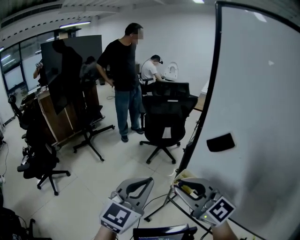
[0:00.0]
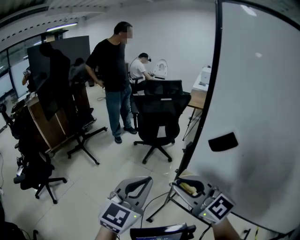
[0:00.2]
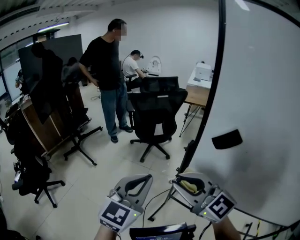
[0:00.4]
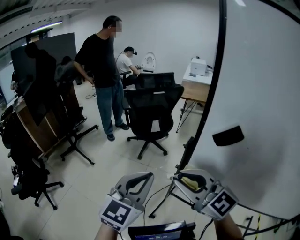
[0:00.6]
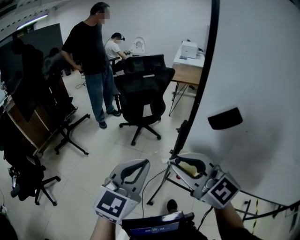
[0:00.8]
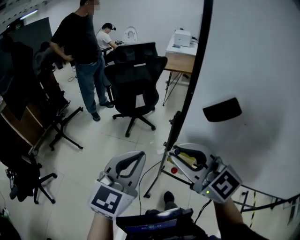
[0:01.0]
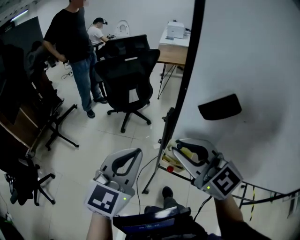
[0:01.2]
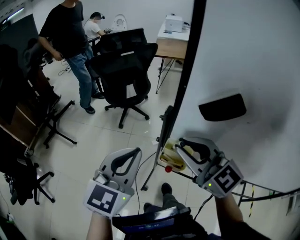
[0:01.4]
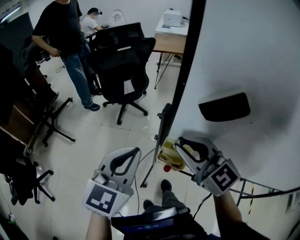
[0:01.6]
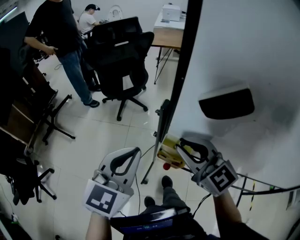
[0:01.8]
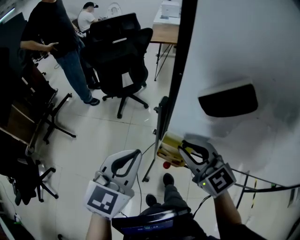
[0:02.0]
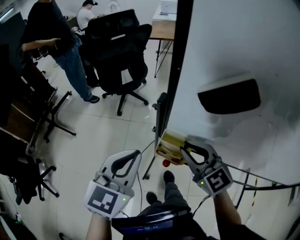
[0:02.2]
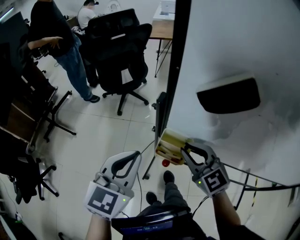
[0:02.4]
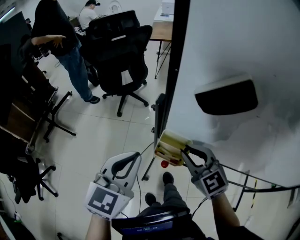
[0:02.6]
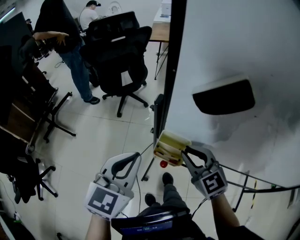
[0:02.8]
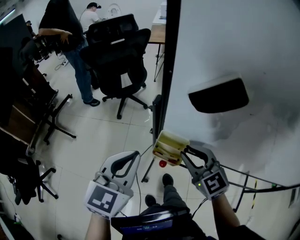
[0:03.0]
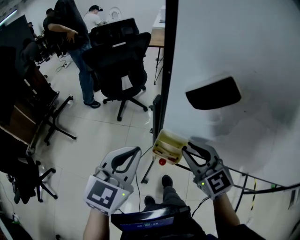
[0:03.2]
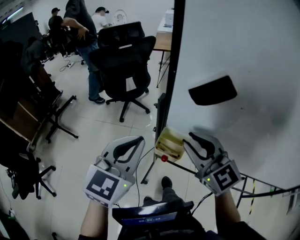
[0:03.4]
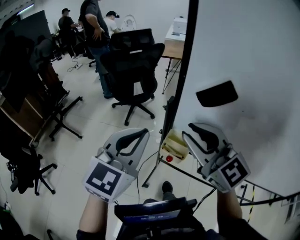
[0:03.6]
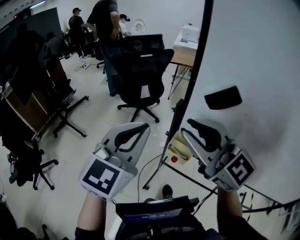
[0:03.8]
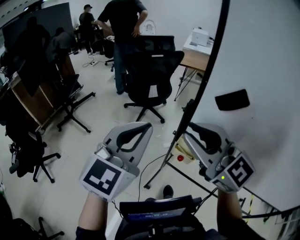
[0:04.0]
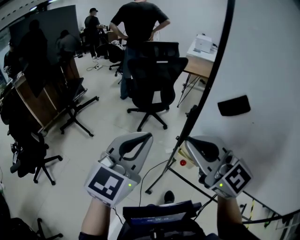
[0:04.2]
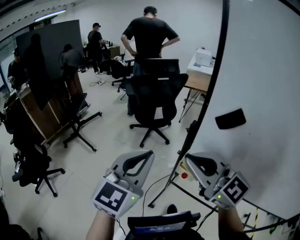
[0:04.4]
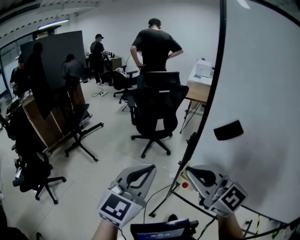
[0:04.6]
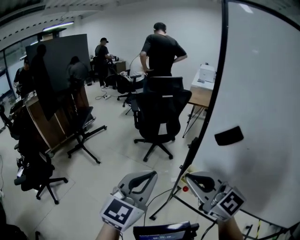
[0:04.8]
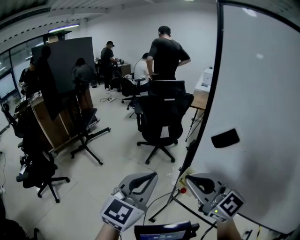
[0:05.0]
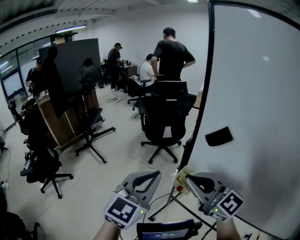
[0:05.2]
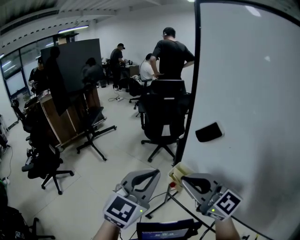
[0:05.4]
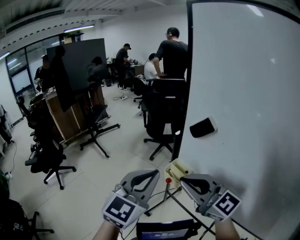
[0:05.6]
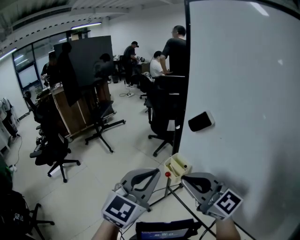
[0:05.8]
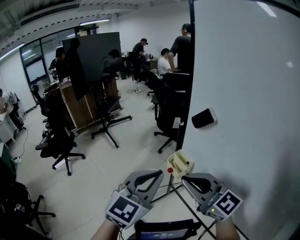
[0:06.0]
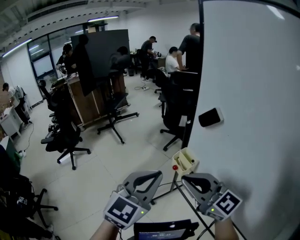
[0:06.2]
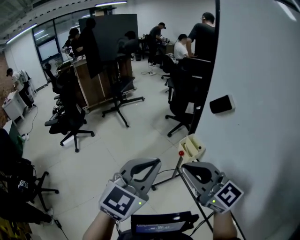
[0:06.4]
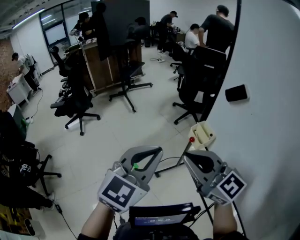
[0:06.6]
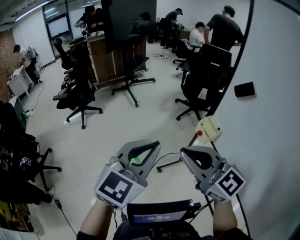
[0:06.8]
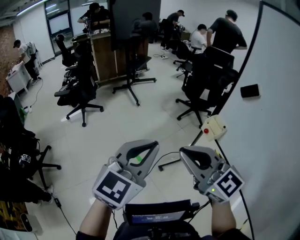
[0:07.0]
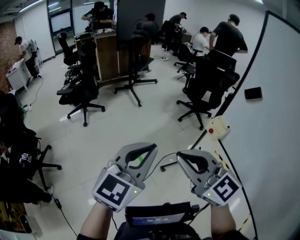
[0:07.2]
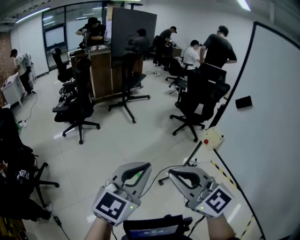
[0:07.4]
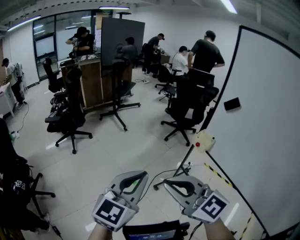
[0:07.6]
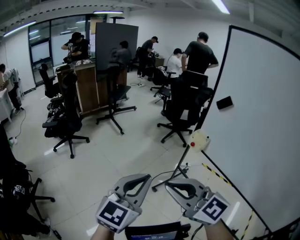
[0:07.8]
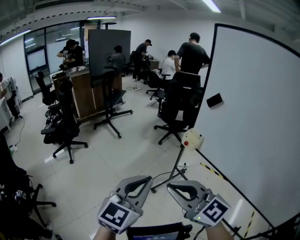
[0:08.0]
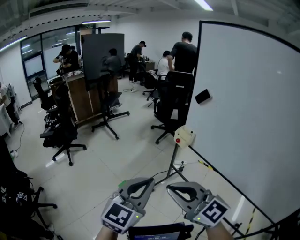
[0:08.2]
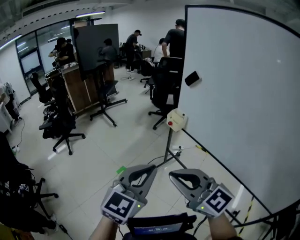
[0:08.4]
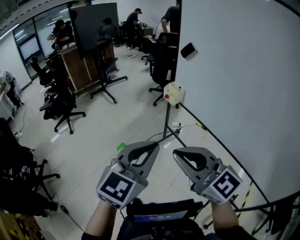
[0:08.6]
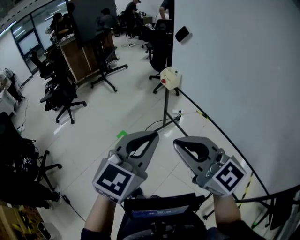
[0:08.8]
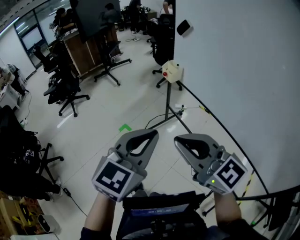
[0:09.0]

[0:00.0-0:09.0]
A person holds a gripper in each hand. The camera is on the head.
0:00.0 to 0:01.6: The left gripper shifts about 15 cm forward and downward; the right gripper travels forward, downward and to the right by approximately 15 cm, and swivels some 30 degrees.
0:01.6 to 0:03.0: The right gripper is displaced downward and to the right by roughly 15 cm, while the left gripper shifts by about 5 cm.
0:03.0 to 0:04.4: The left gripper heads upward, to the left and backward, covering about 15 cm, while the right gripper heads upward and to the left, covering roughly 25 cm, swivels approximately 40 degrees, and closes.
0:04.4 to 0:06.0: The two grippers go approximately 20 cm backward and to the right. The right gripper swivels about 20 degrees.
0:06.0 to 0:07.6: The grippers both shift to the left and backward by approximately 35 cm.
0:07.6 to 0:09.0: Both grippers travel together to the right and backward, about 35 cm.

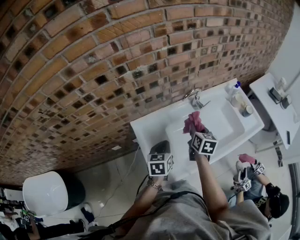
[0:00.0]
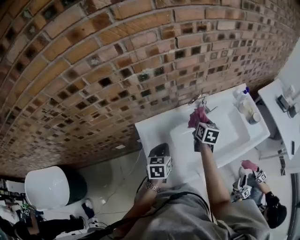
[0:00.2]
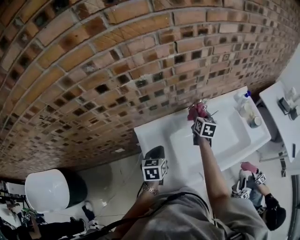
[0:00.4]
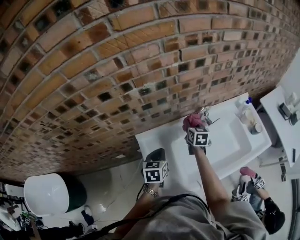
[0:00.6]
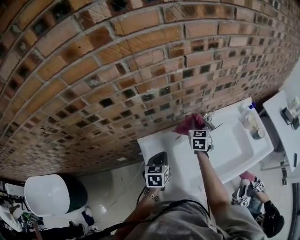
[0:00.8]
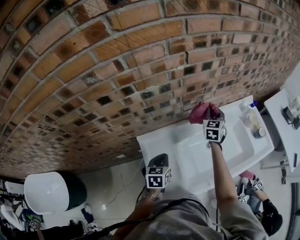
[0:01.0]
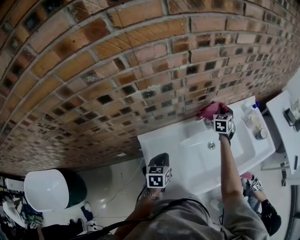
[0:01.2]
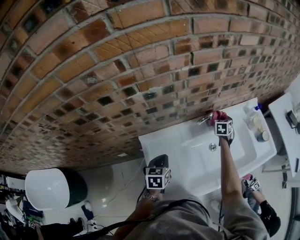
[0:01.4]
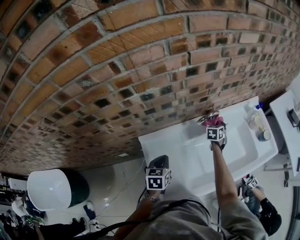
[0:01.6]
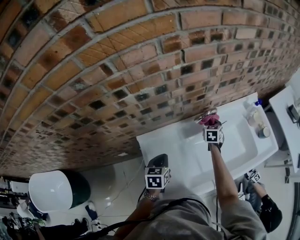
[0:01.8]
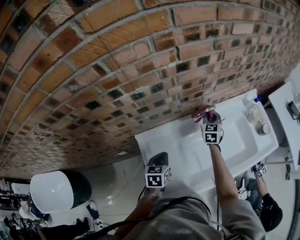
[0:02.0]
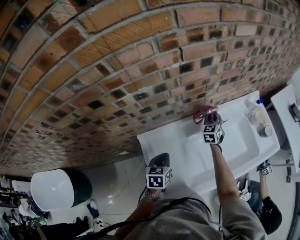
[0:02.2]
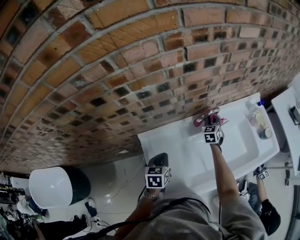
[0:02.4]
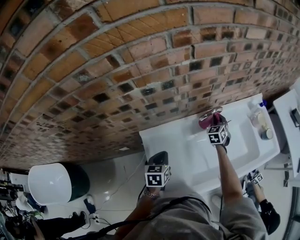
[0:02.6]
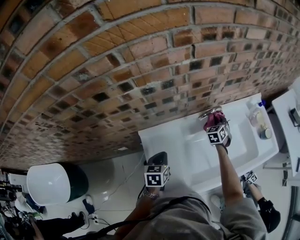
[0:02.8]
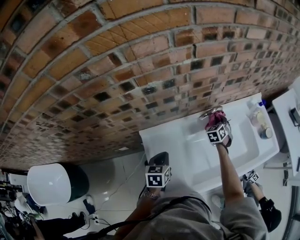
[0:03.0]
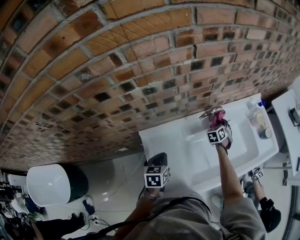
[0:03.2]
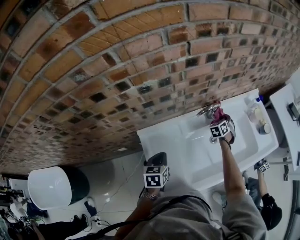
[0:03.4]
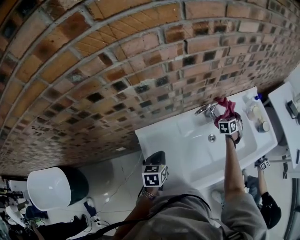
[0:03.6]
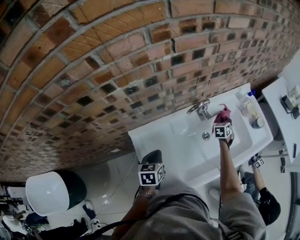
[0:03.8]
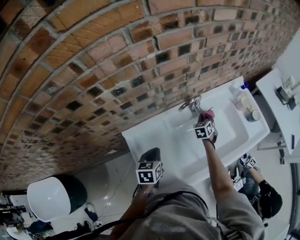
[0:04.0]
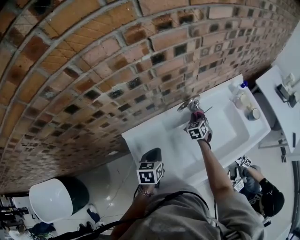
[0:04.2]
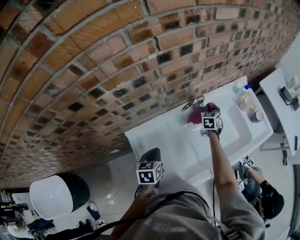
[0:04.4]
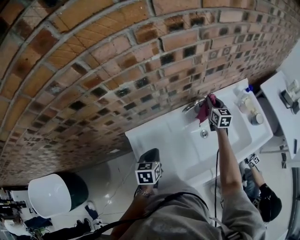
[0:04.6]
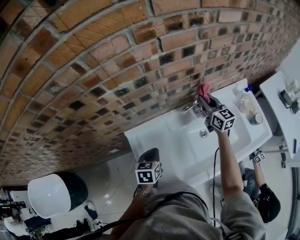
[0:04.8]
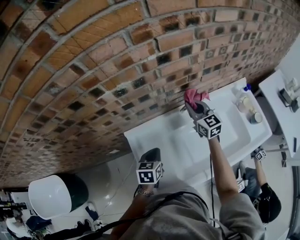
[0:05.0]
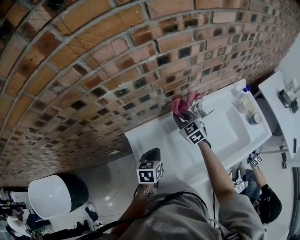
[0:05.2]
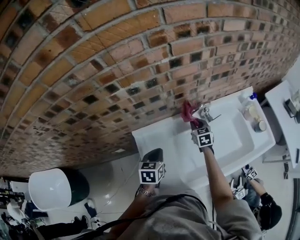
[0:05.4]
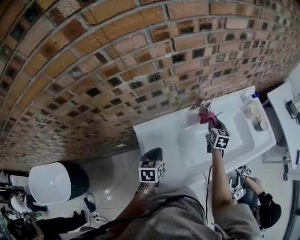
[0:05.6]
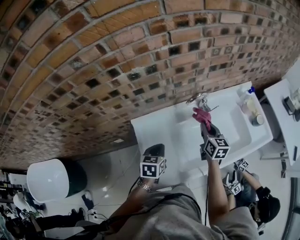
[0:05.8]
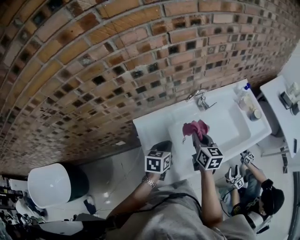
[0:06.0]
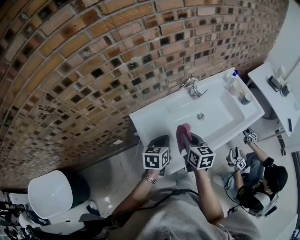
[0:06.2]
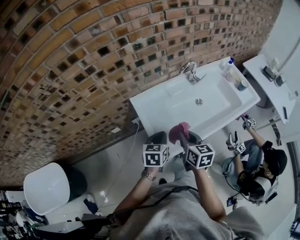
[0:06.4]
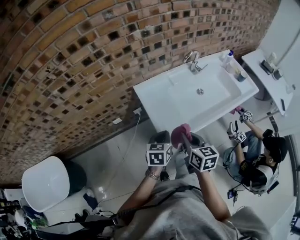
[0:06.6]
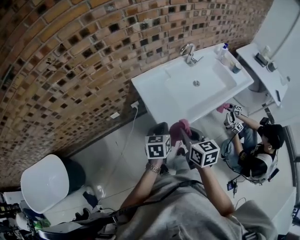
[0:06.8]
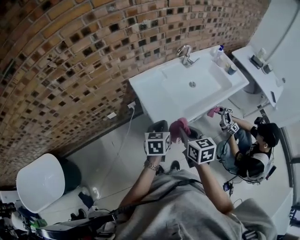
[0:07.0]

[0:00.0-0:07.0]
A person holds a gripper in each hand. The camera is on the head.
0:00.0 to 0:01.4: The right gripper heads forward, to the right and downward, covering approximately 30 cm, and turns by approximately 40 degrees. The left gripper travels forward by approximately 10 cm.
0:01.4 to 0:02.8: The right gripper is displaced to the left by roughly 5 cm, reaches approximately 5 cm upward, then returns, and swivels approximately 20 degrees.
0:02.8 to 0:04.2: The right gripper goes to the right and returns, roughly 15 cm each way. Meanwhile the left gripper ends up approximately 5 cm from where it was.
0:04.2 to 0:05.6: The right gripper moves left and right over about 20 cm, changing direction 2 times, and rotates some 40 degrees.
0:05.6 to 0:07.0: The right gripper goes roughly 60 cm backward and to the left; the left gripper travels backward by about 30 cm.

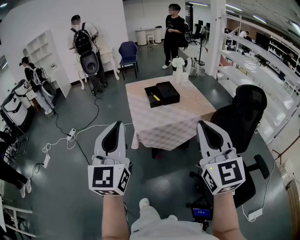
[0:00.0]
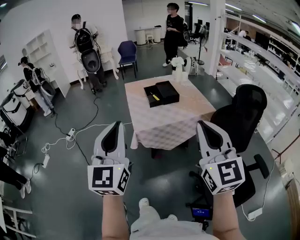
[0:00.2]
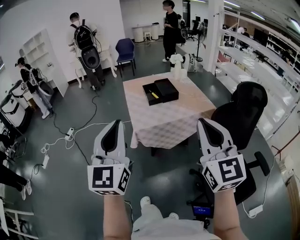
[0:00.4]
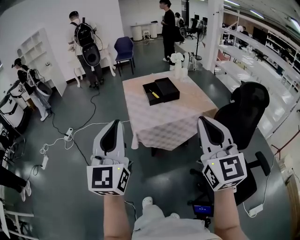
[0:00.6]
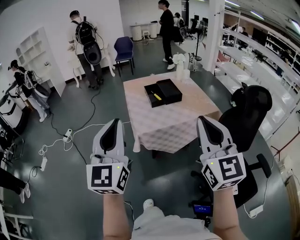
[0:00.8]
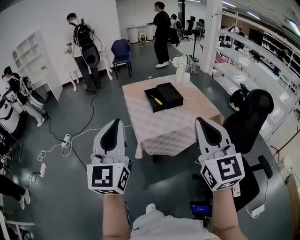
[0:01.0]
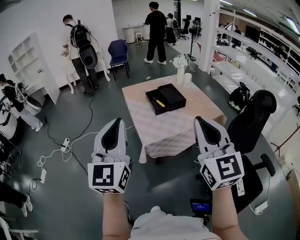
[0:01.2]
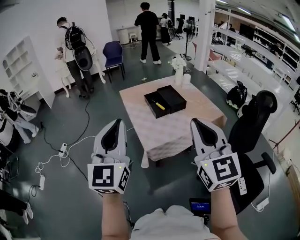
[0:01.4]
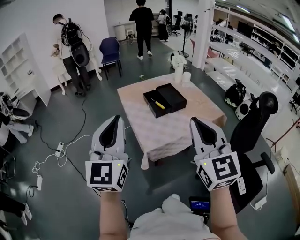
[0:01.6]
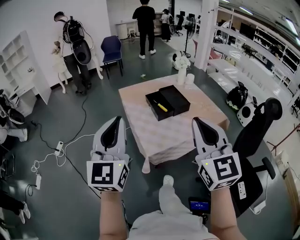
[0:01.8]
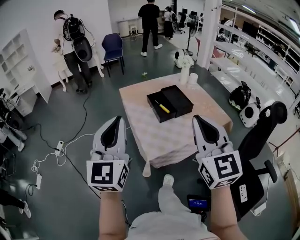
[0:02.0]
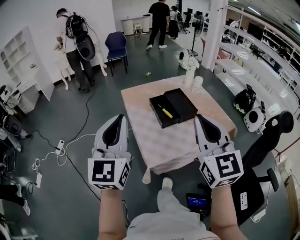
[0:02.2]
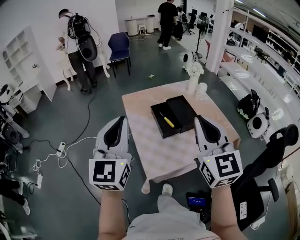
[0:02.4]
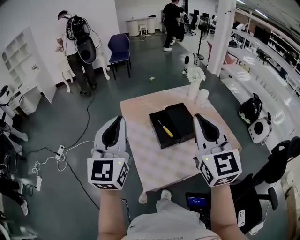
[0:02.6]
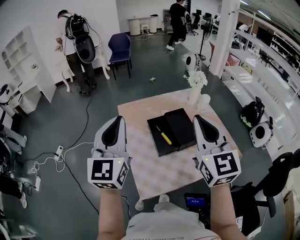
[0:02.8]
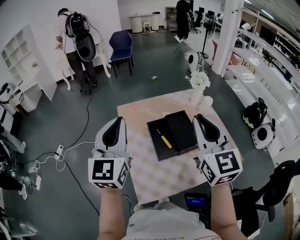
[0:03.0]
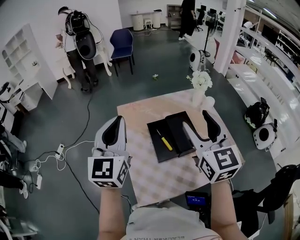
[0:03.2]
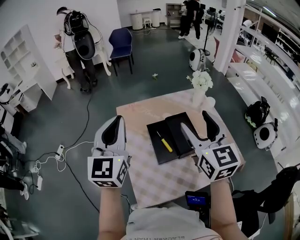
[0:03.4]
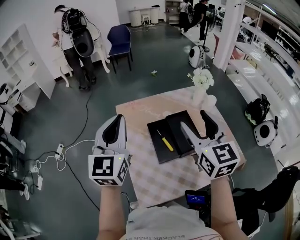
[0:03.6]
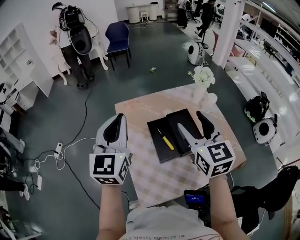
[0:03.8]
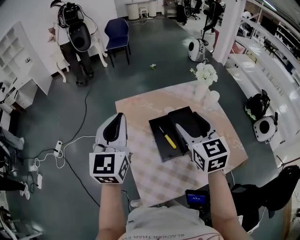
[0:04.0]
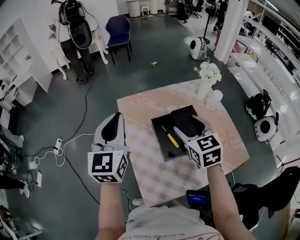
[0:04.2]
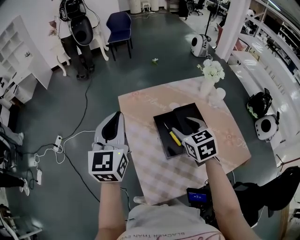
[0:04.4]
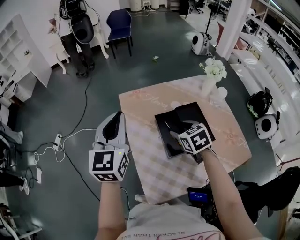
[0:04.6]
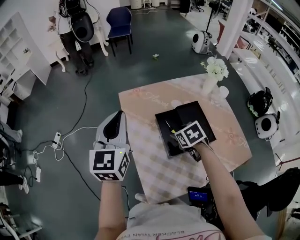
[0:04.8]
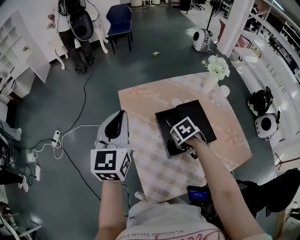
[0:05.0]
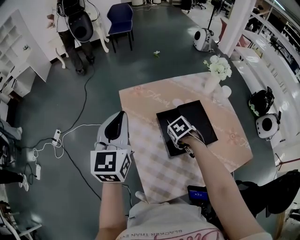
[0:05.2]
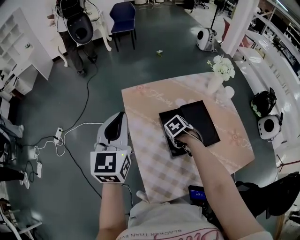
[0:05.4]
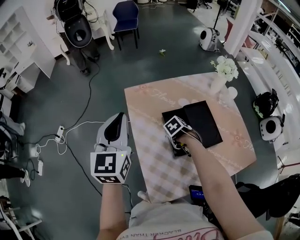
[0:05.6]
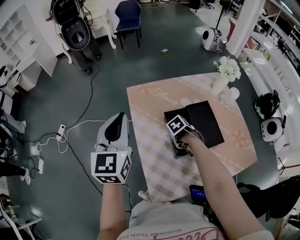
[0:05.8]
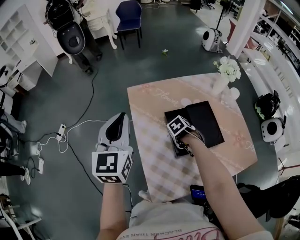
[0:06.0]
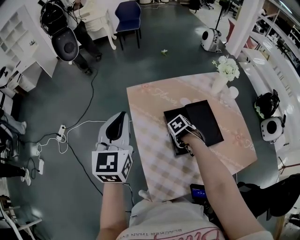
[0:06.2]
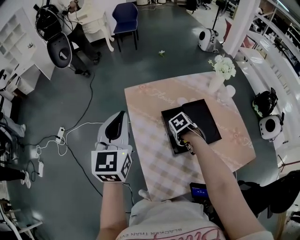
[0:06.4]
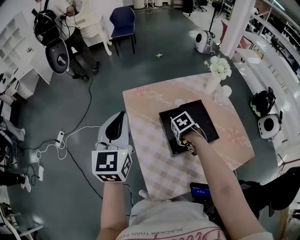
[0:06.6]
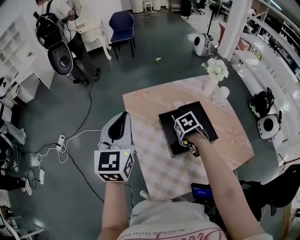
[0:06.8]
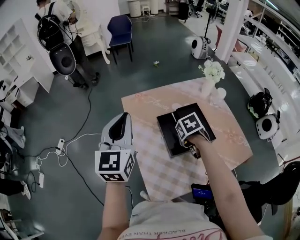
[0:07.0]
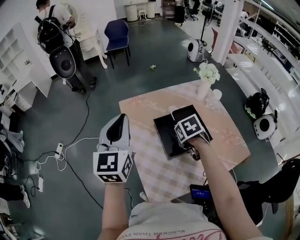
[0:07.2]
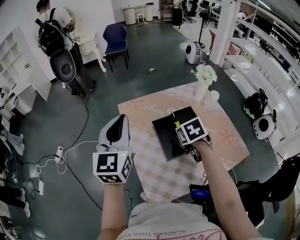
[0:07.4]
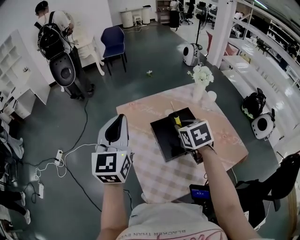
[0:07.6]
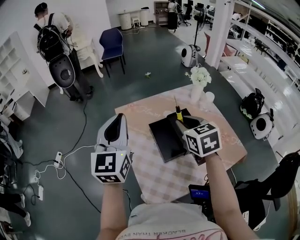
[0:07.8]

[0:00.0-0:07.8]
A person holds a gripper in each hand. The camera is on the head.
0:00.0 to 0:01.6: Both grippers move forward and to the left, roughly 25 cm.
0:01.6 to 0:03.2: Both grippers move forward, about 40 cm. The right gripper opens up.
0:03.2 to 0:04.6: The right gripper shifts roughly 25 cm downward, and angles its fingers downward, by approximately 40 degrees. Meanwhile the left gripper is displaced forward and downward by roughly 10 cm.
0:04.6 to 0:06.2: The right gripper goes roughly 15 cm downward, points its fingers approximately 40 degrees further downward, and closes.
0:06.2 to 0:07.8: The right gripper travels upward by roughly 30 cm, and angles its fingers upward, by approximately 60 degrees; the left gripper travels upward by some 5 cm.
